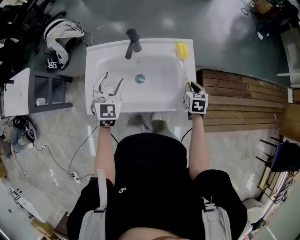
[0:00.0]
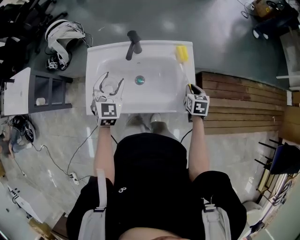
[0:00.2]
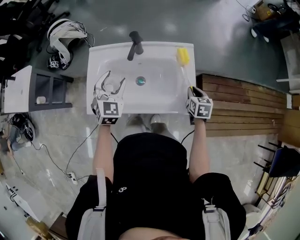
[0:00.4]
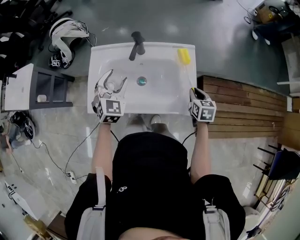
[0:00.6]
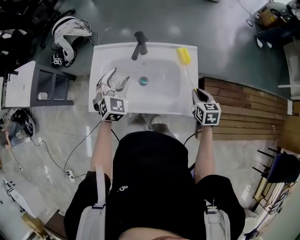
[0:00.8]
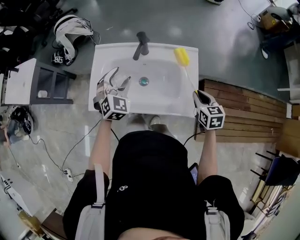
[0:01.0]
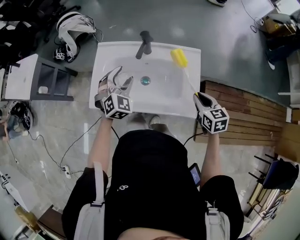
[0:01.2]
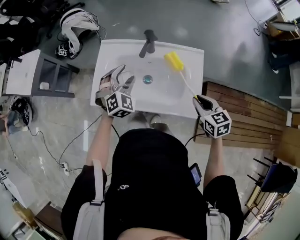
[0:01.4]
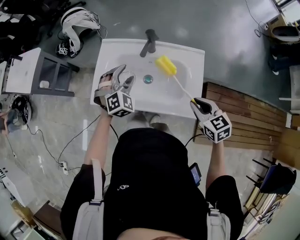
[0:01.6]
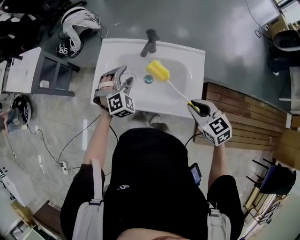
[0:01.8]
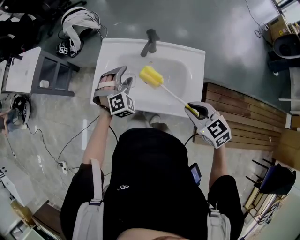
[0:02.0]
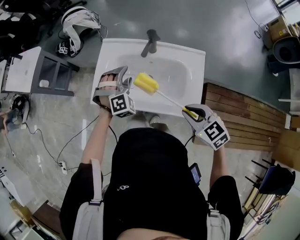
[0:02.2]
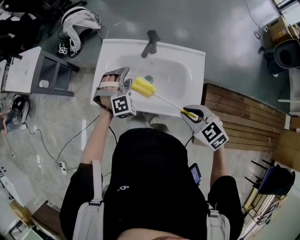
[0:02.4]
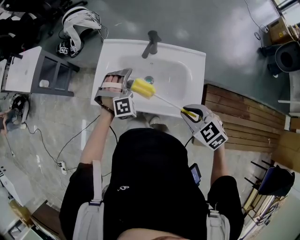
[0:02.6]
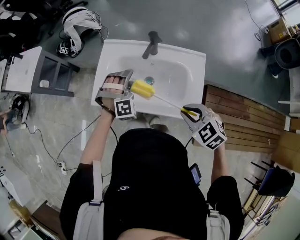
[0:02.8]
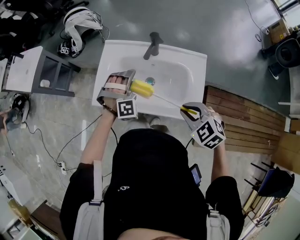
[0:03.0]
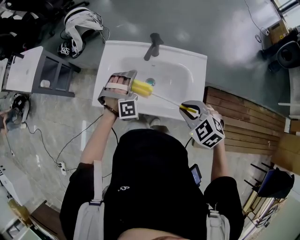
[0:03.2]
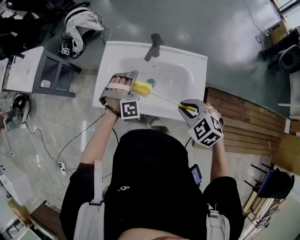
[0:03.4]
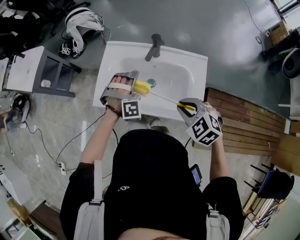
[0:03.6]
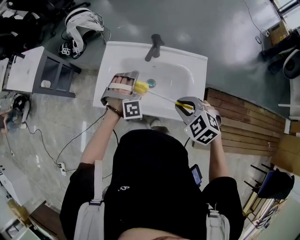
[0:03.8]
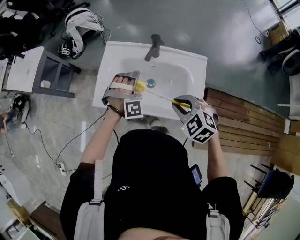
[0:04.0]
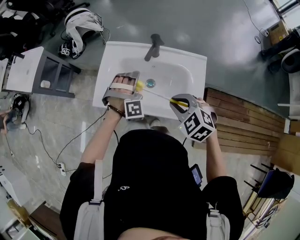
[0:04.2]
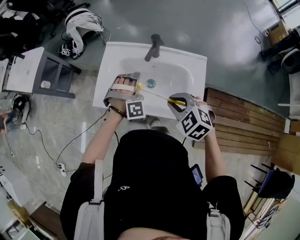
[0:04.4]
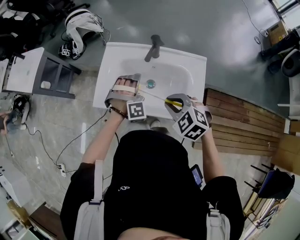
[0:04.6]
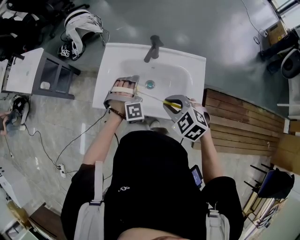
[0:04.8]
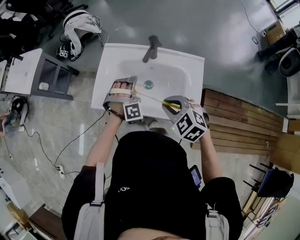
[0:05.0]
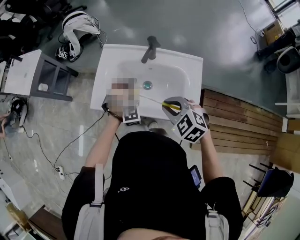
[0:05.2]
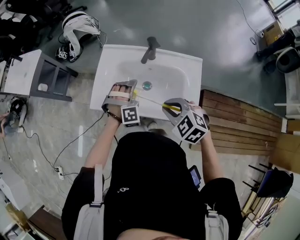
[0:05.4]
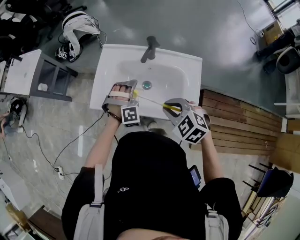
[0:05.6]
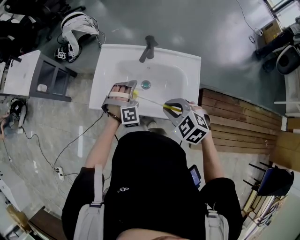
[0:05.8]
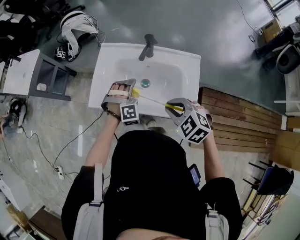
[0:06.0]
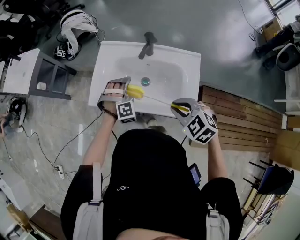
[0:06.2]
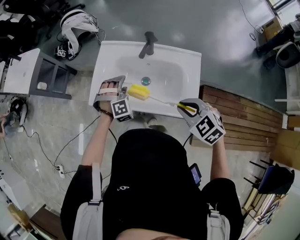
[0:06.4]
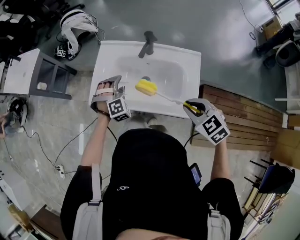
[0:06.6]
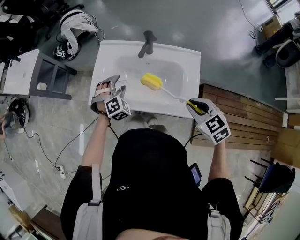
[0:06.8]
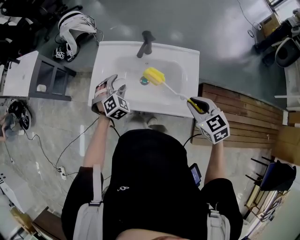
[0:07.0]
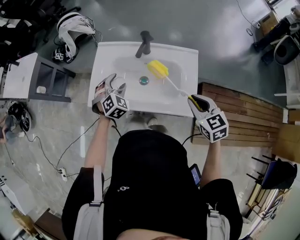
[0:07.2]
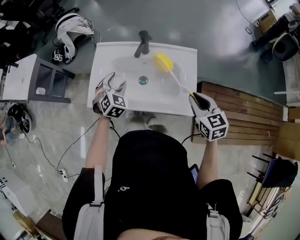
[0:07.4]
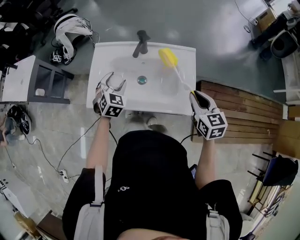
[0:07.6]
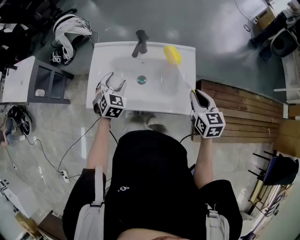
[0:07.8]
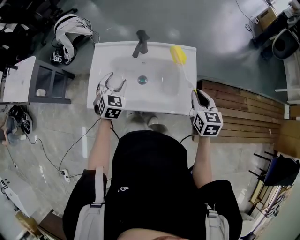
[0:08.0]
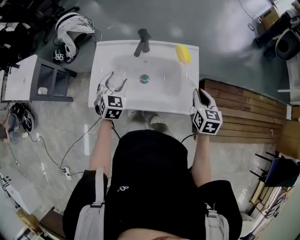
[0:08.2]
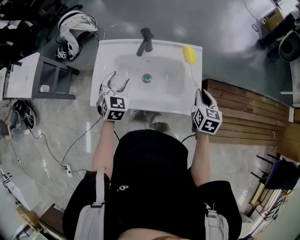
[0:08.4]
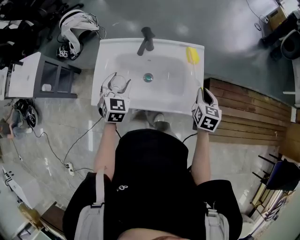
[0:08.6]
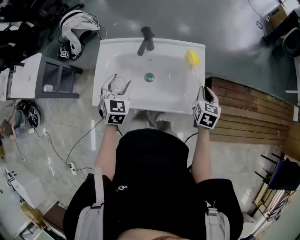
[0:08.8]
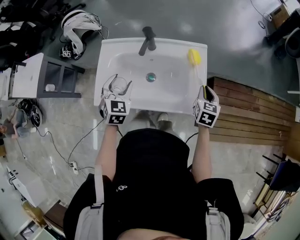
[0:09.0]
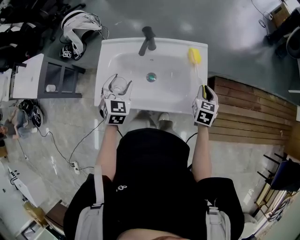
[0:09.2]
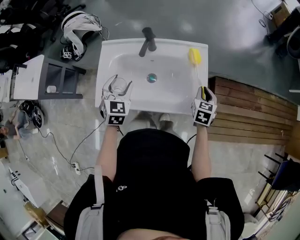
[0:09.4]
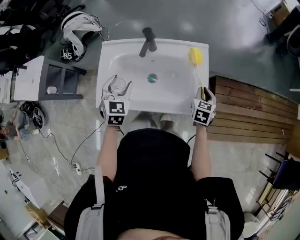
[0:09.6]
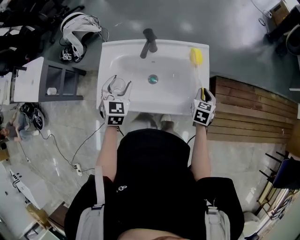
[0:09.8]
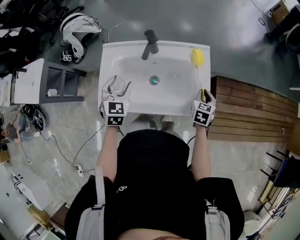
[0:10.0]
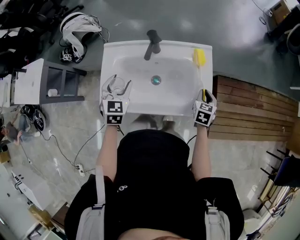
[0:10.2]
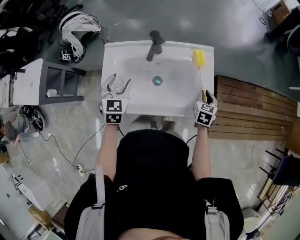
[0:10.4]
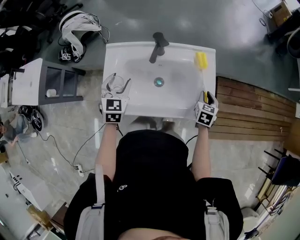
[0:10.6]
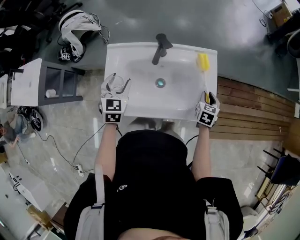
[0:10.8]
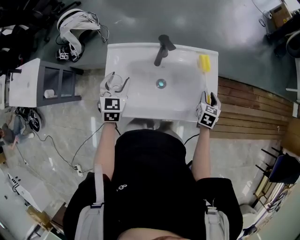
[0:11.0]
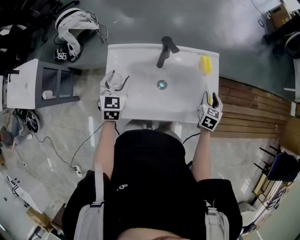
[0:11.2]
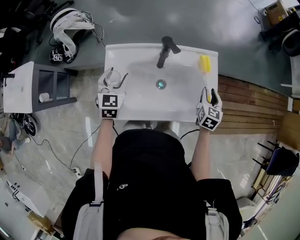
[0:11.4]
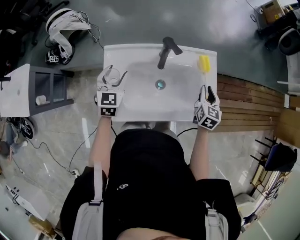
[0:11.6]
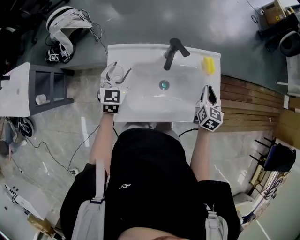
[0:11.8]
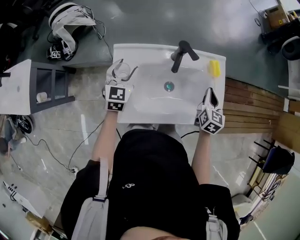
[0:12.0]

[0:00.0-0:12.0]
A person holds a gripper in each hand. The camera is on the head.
0:00.0 to 0:01.6: The left gripper swivels about 30 degrees, while the right gripper is displaced upward by some 15 cm, and changes its angle by approximately 40 degrees.
0:01.6 to 0:03.0: The right gripper shifts about 5 cm to the left, and rotates roughly 30 degrees; the left gripper changes its angle by about 30 degrees.
0:03.0 to 0:04.4: The right gripper travels forward by some 5 cm.
0:04.4 to 0:06.0: The left gripper moves downward, approximately 5 cm.
0:06.0 to 0:07.6: The left gripper changes place by approximately 5 cm, and twists roughly 50 degrees counterclockwise, seen from behind. Meanwhile the right gripper heads to the right, covering roughly 15 cm, and turns by roughly 50 degrees.
0:07.6 to 0:09.0: The right gripper heads downward and to the right, covering about 10 cm, and swivels roughly 30 degrees.
0:09.0 to 0:10.4: The right gripper is displaced downward by approximately 5 cm, while the left gripper changes place by roughly 5 cm.
0:10.4 to 0:12.0: The left gripper moves forward and to the left, roughly 15 cm; the right gripper goes about 15 cm to the left and upward.

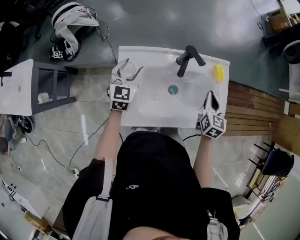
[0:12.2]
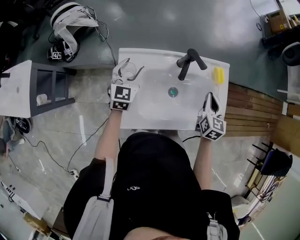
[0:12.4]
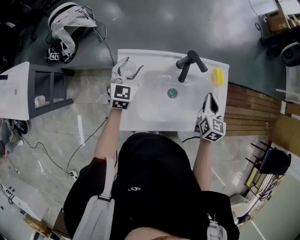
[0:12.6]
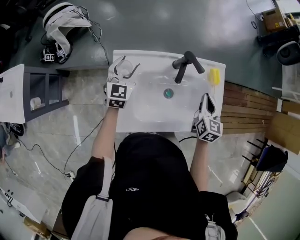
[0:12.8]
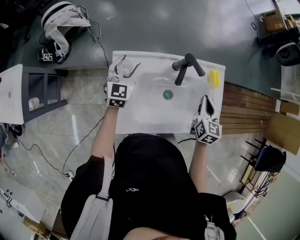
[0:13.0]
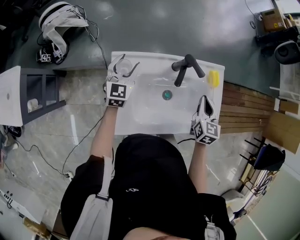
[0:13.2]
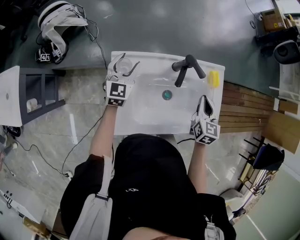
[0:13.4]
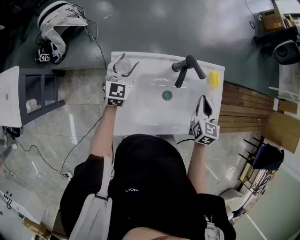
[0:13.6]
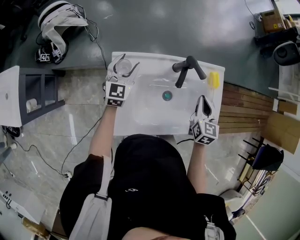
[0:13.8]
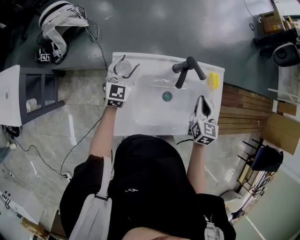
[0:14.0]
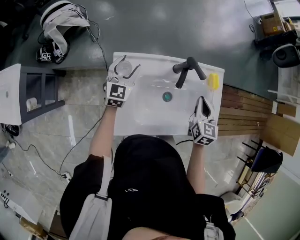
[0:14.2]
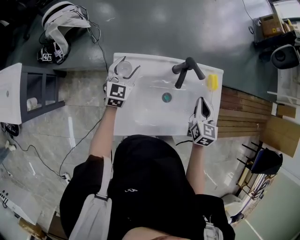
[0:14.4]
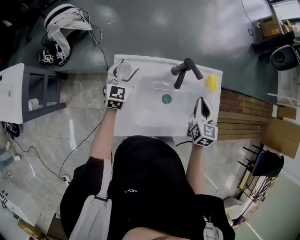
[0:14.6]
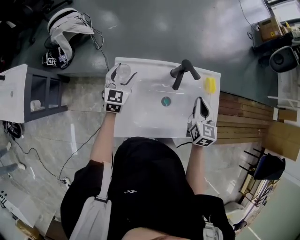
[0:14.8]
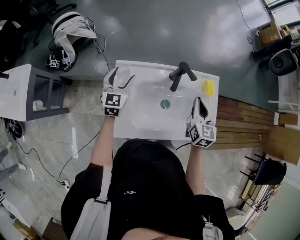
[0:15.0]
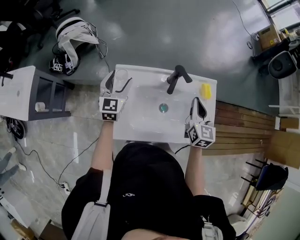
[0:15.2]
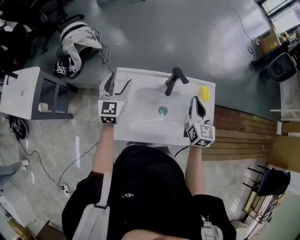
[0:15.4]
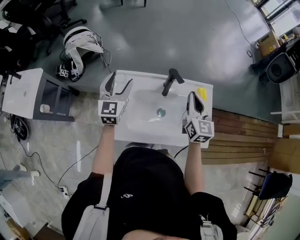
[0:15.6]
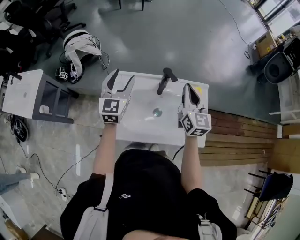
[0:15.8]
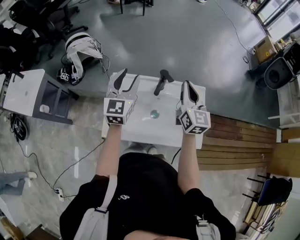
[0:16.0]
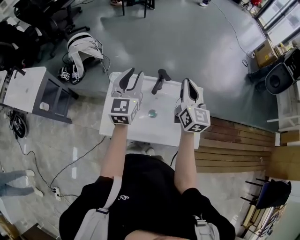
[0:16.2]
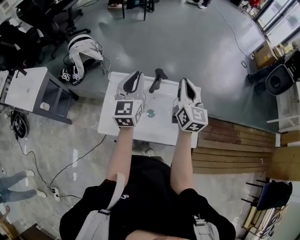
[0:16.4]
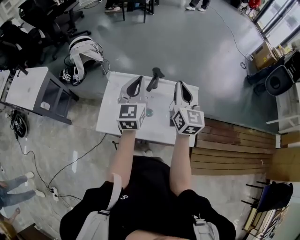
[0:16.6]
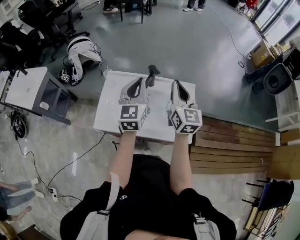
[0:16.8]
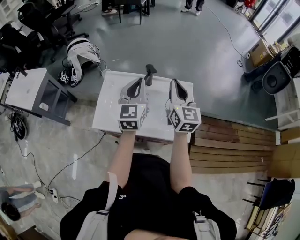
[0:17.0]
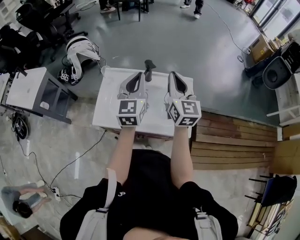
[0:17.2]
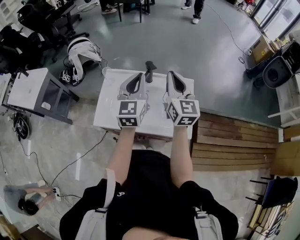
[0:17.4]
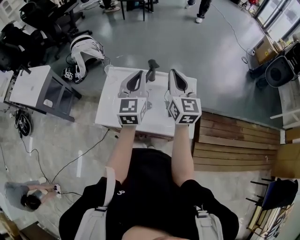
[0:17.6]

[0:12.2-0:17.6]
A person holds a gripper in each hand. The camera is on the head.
0:12.2 to 0:13.6: The left gripper moves forward, roughly 5 cm.
0:13.6 to 0:15.0: The right gripper moves roughly 5 cm. The left gripper shifts by approximately 5 cm.
0:15.0 to 0:16.2: The left gripper shifts some 25 cm upward and to the right, rotates some 20 degrees, and closes up. The right gripper goes approximately 15 cm upward, and rotates about 30 degrees.
0:16.2 to 0:17.6: The right gripper shifts about 5 cm backward; the left gripper heads to the right and backward, covering about 10 cm, and closes.

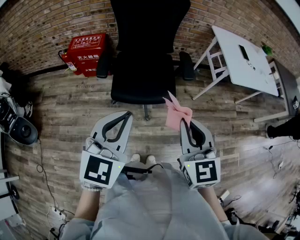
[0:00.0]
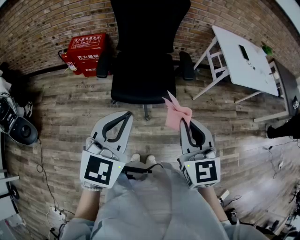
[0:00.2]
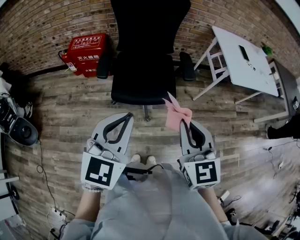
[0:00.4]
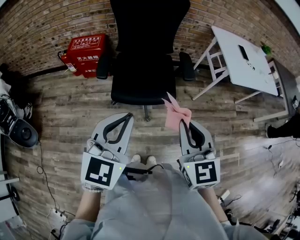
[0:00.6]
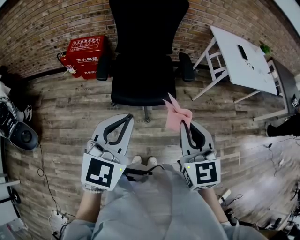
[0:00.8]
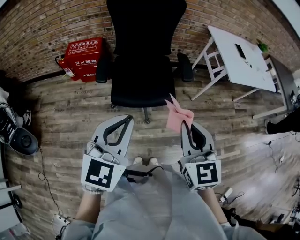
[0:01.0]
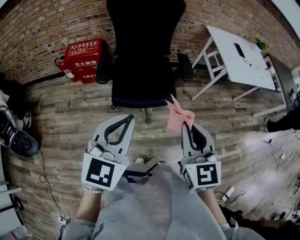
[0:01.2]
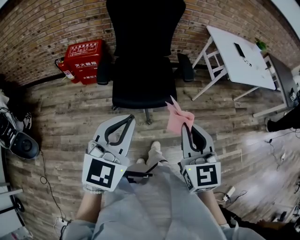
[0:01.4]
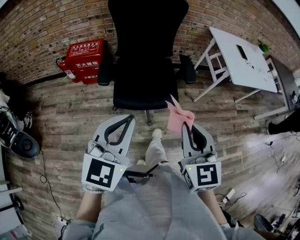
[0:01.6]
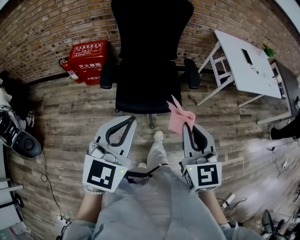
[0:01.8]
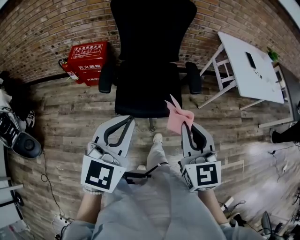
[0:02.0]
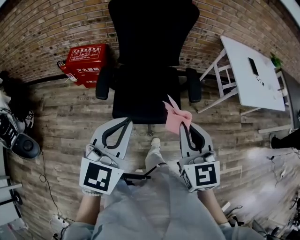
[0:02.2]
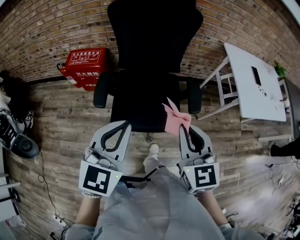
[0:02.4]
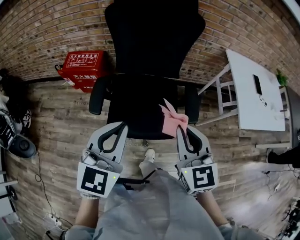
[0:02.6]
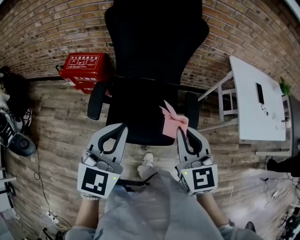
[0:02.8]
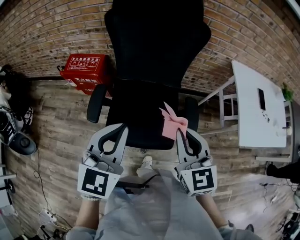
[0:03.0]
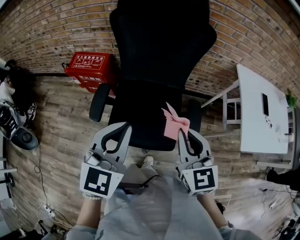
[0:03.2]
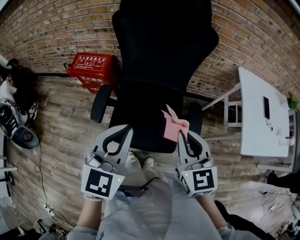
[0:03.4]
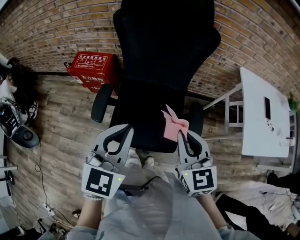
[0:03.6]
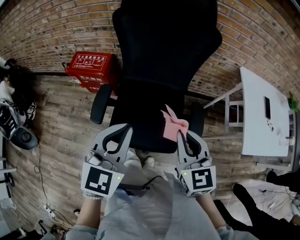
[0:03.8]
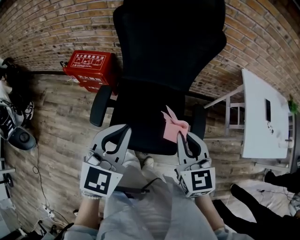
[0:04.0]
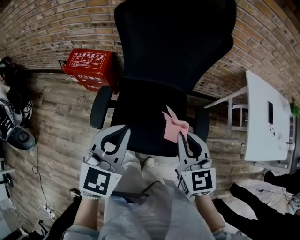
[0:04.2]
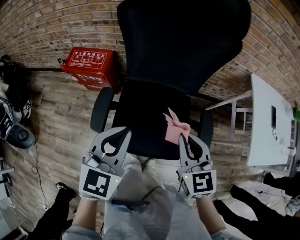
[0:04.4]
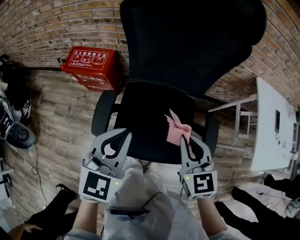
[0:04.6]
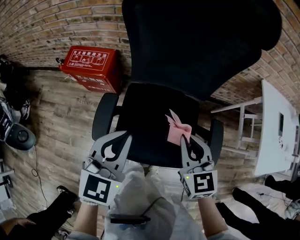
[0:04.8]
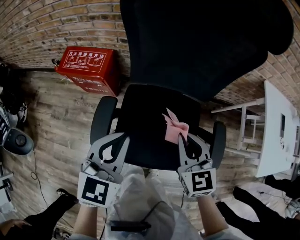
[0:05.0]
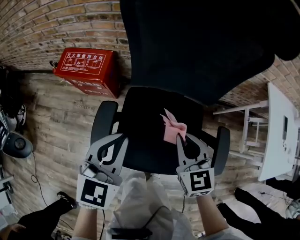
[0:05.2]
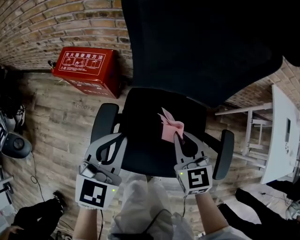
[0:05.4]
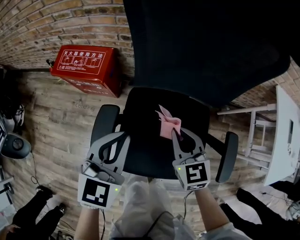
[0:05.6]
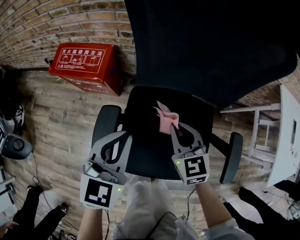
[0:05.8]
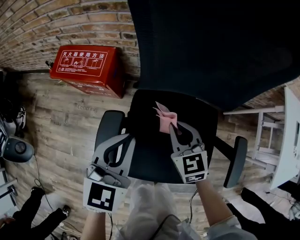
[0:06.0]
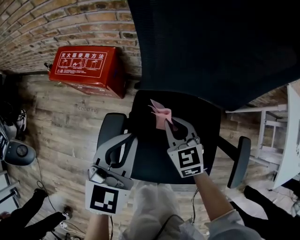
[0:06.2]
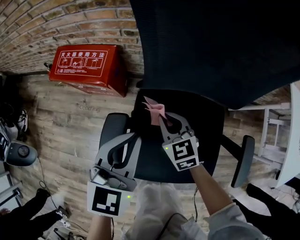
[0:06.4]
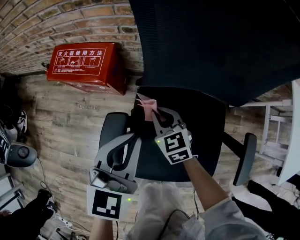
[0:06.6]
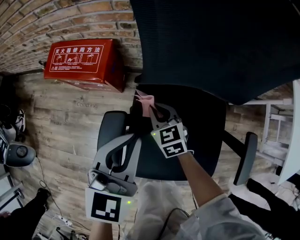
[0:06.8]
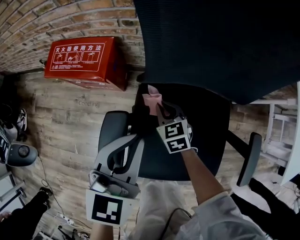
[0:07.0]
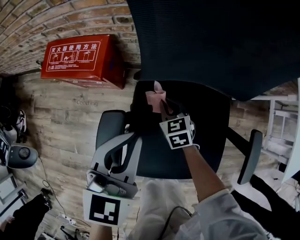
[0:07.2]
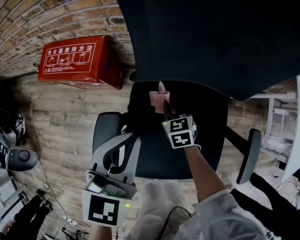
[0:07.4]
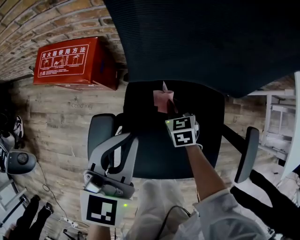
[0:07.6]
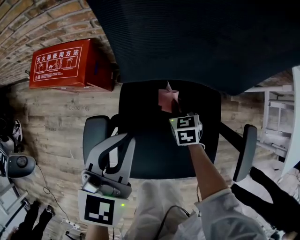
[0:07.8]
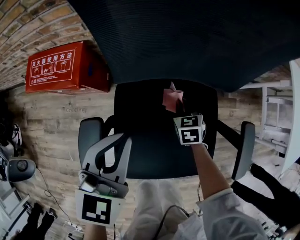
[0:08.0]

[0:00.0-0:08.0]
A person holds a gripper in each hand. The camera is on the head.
0:00.0 to 0:01.6: The grippers move only a little.
0:01.6 to 0:03.2: Both grippers travel together forward, approximately 35 cm.
0:03.2 to 0:04.8: Both grippers travel together forward, downward and to the left, about 25 cm.
0:04.8 to 0:06.4: The left gripper moves downward, forward and to the left, approximately 20 cm, while the right gripper is displaced downward, forward and to the left by about 35 cm.
0:06.4 to 0:08.0: The left gripper moves approximately 5 cm; the right gripper travels to the right and downward by roughly 20 cm, and turns by approximately 30 degrees.
